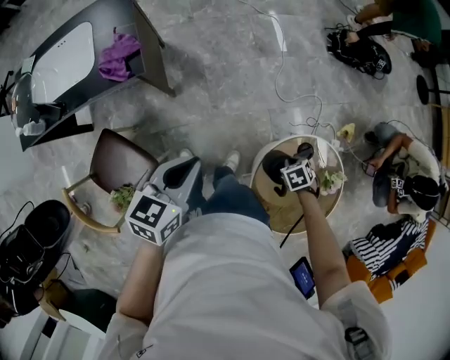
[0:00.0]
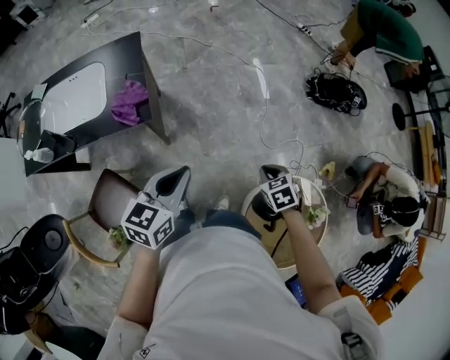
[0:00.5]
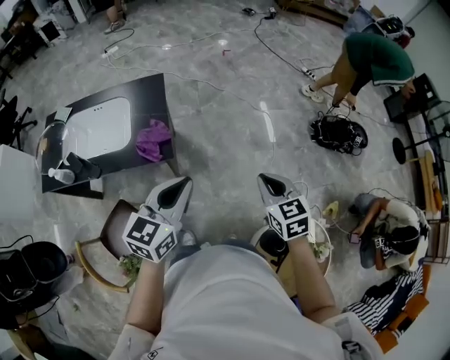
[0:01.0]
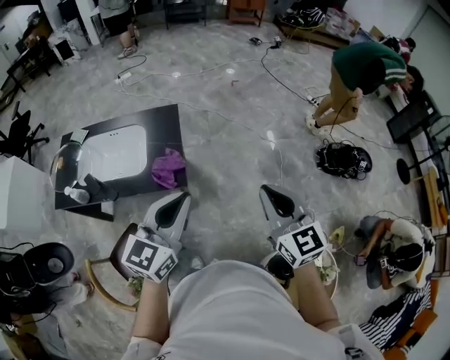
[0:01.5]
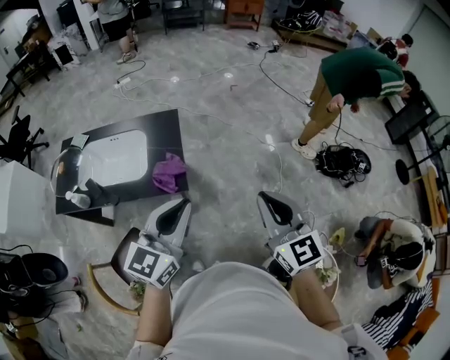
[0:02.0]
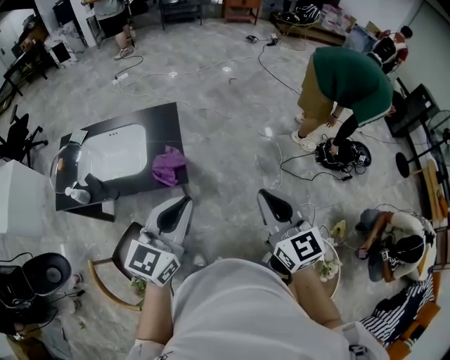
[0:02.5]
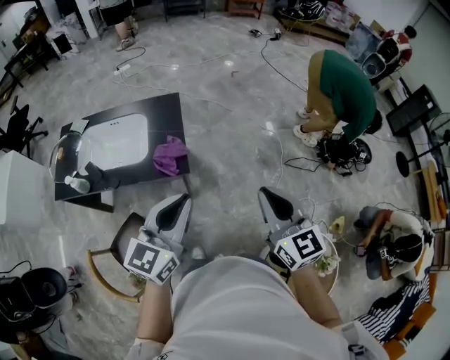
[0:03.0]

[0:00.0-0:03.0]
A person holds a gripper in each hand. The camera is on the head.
0:00.0 to 0:01.5: The left gripper heads upward, covering roughly 25 cm, and rotates some 40 degrees, while the right gripper heads upward, covering about 50 cm, and tips its fingers upward by approximately 70 degrees.
0:01.5 to 0:03.0: The grippers move only a little.

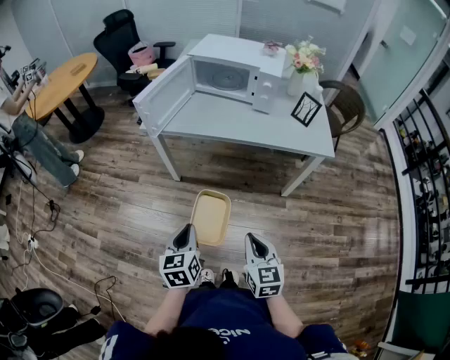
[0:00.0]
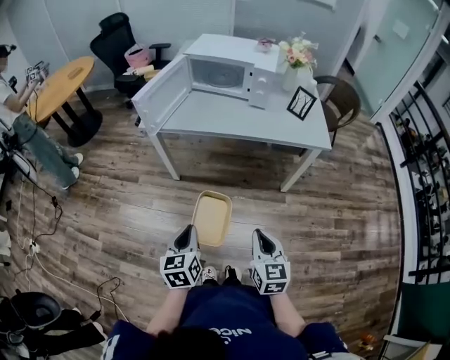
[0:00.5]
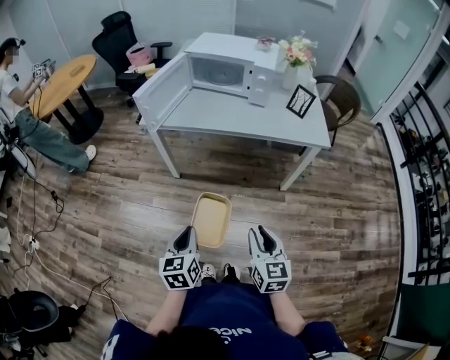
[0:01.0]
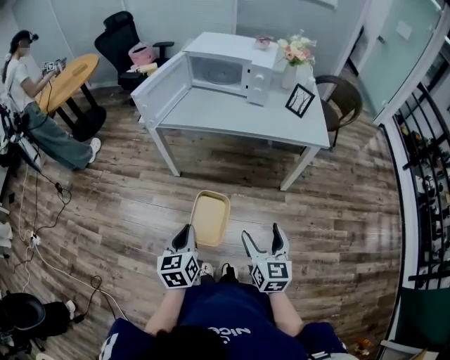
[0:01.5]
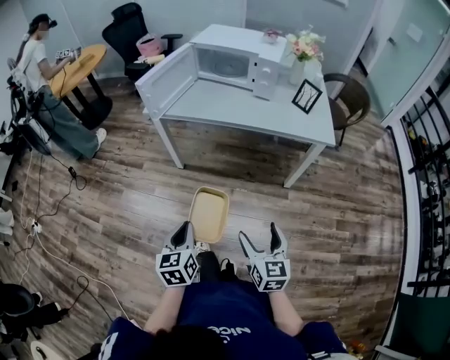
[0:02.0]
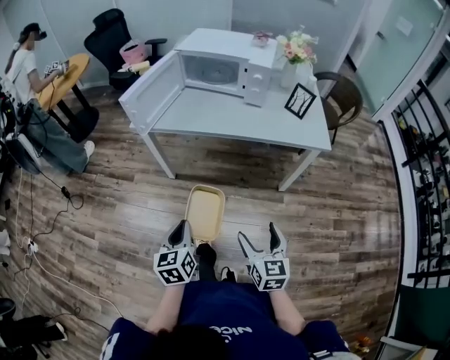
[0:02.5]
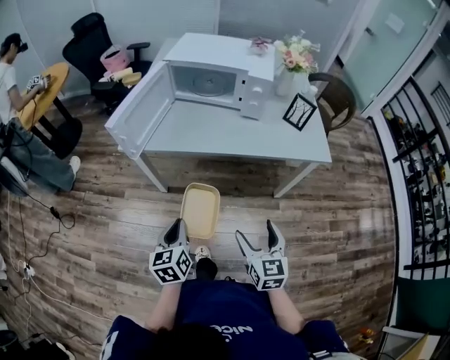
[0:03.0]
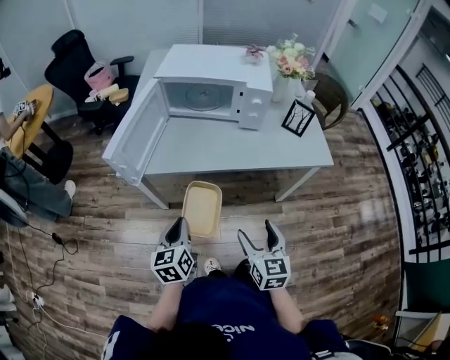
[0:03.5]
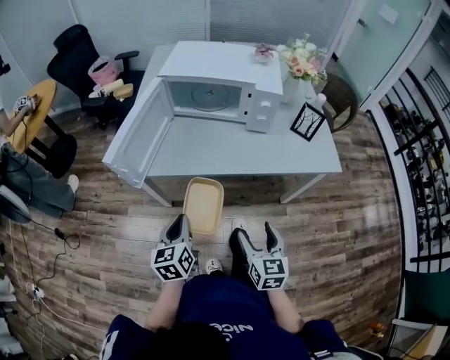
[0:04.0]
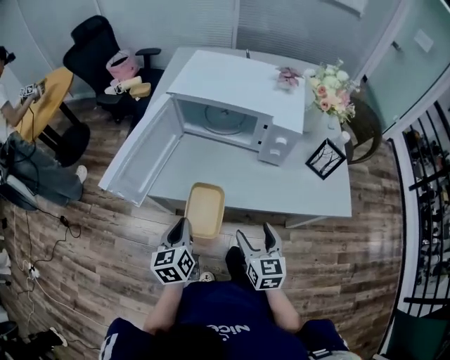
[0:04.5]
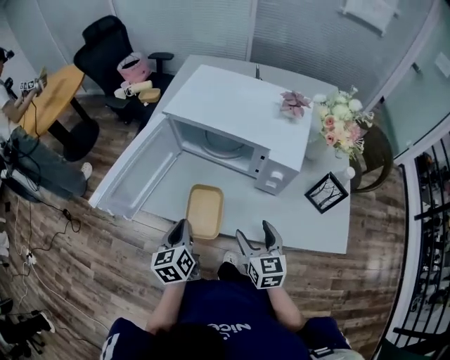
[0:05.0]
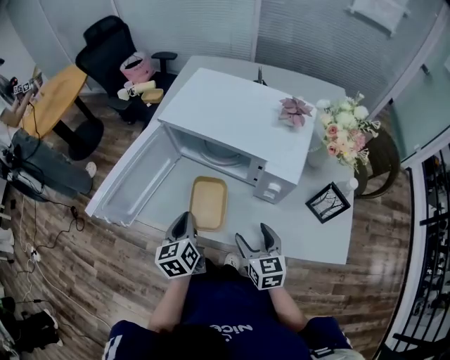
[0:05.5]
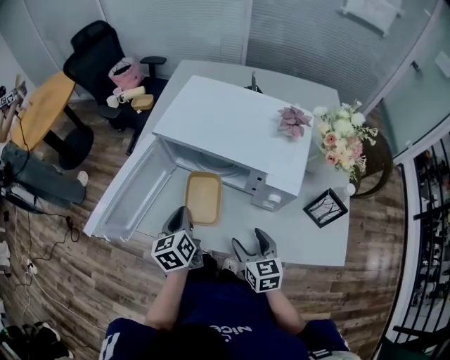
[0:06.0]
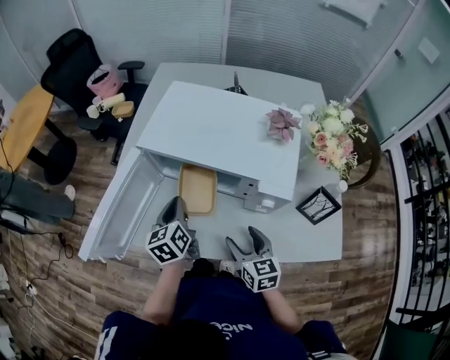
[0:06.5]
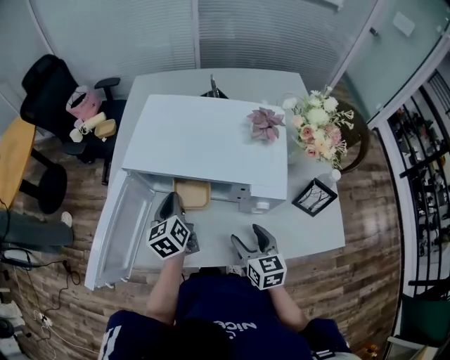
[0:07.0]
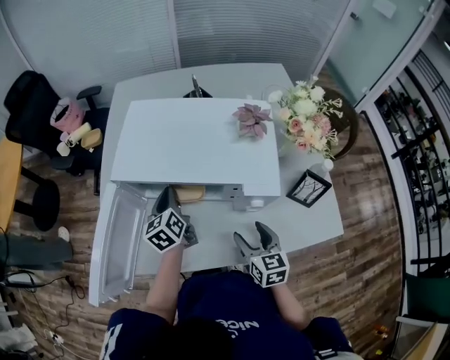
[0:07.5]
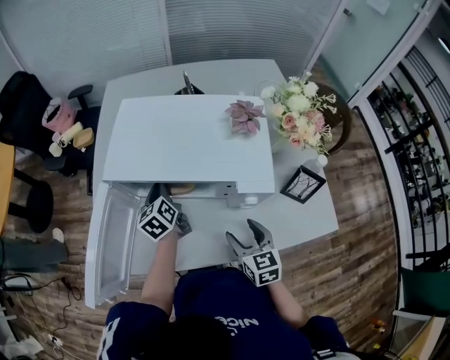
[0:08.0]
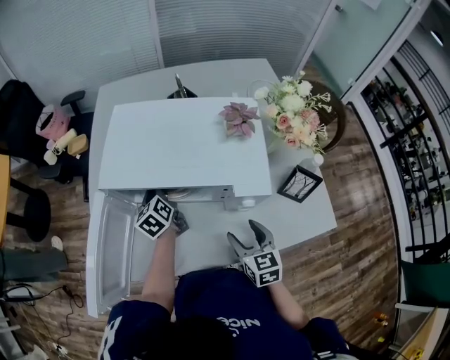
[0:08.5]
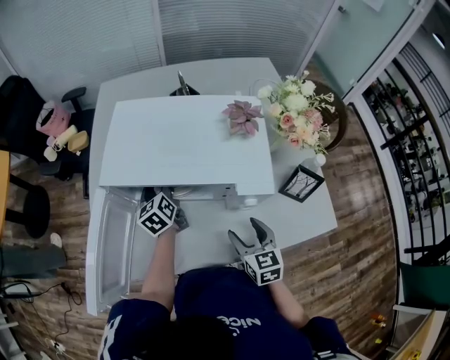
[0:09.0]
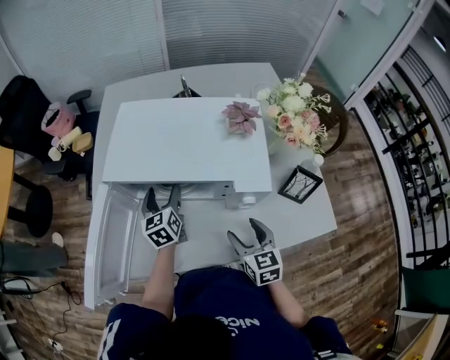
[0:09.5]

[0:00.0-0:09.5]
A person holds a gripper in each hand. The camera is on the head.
0:00.0 to 0:02.0: The left gripper shifts approximately 5 cm backward, while the right gripper is displaced to the right by roughly 5 cm, and opens up.
0:02.0 to 0:04.0: Both grippers travel together forward, about 30 cm.
0:04.0 to 0:05.5: The left gripper shifts roughly 25 cm forward and to the right, while the right gripper shifts roughly 25 cm forward, and rotates some 20 degrees.
0:05.5 to 0:07.5: The left gripper travels forward by some 20 cm. Meanwhile the right gripper travels forward by some 5 cm, and turns by approximately 20 degrees.
0:07.5 to 0:09.5: The left gripper opens.

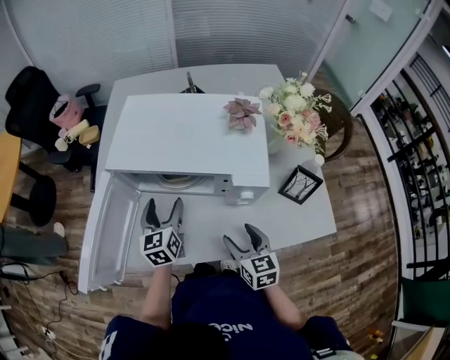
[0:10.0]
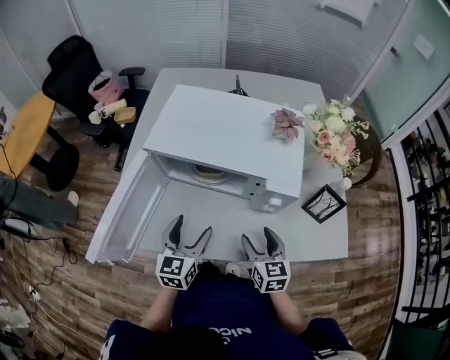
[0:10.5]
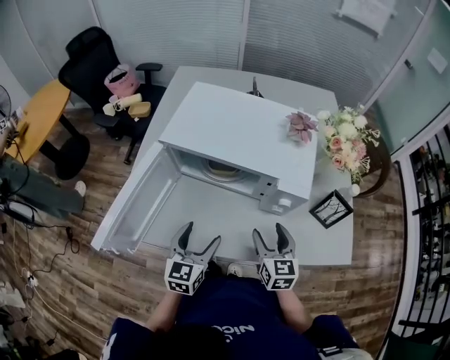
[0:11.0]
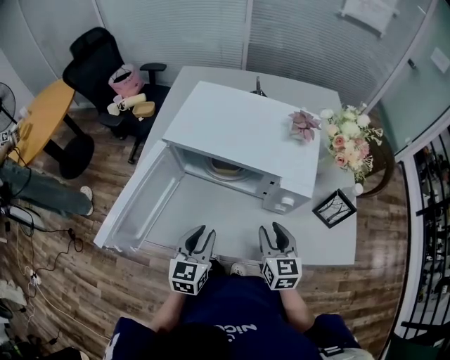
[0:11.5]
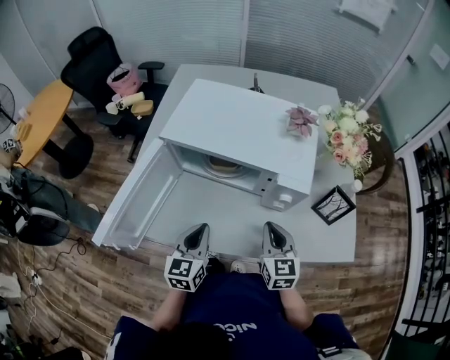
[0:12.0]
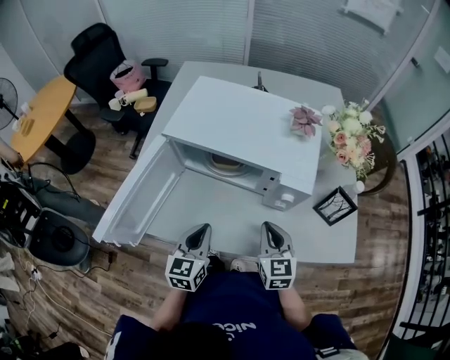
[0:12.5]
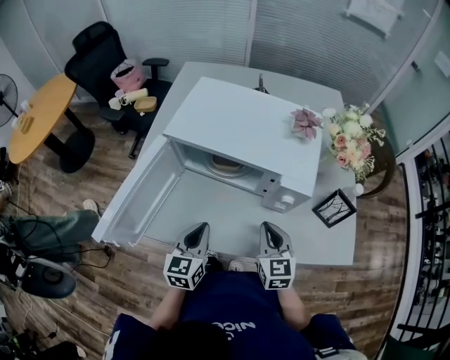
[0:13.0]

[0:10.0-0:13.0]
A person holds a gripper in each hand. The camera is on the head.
0:10.0 to 0:11.5: The left gripper is displaced backward by approximately 15 cm, and closes up.
0:11.5 to 0:13.0: The right gripper closes up.

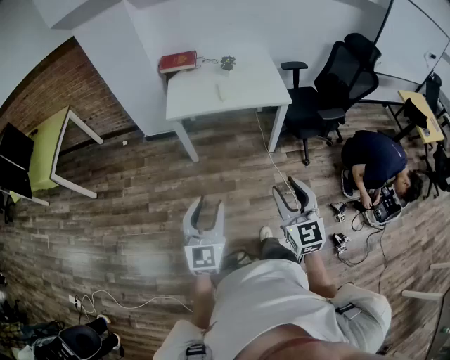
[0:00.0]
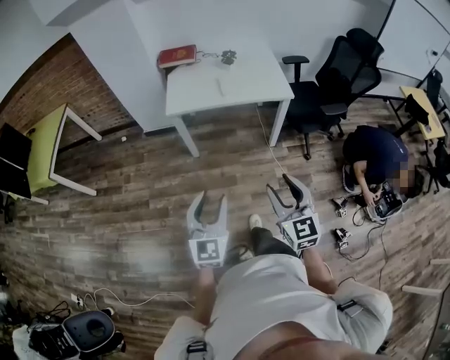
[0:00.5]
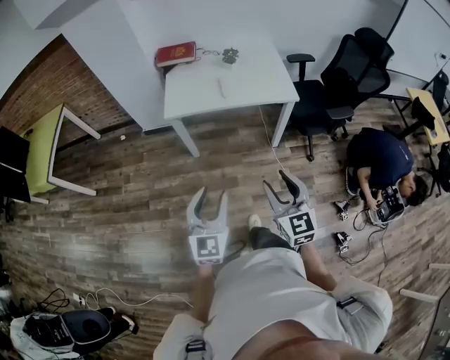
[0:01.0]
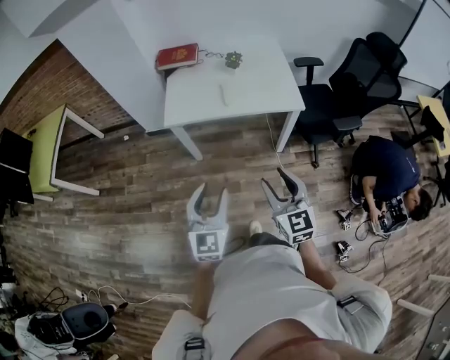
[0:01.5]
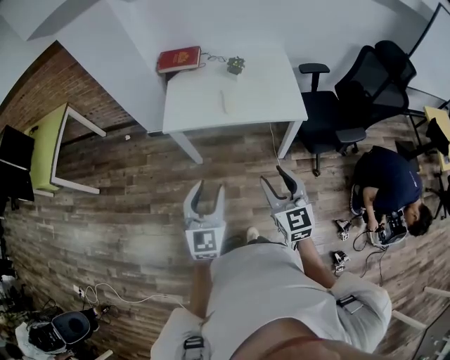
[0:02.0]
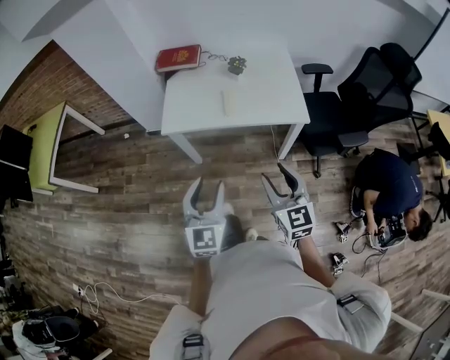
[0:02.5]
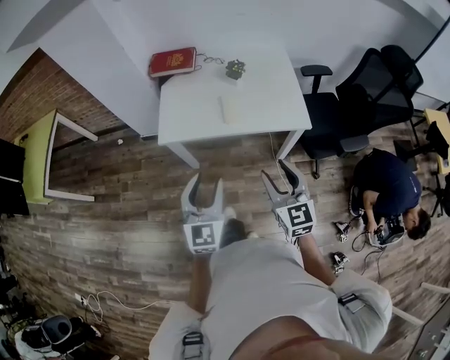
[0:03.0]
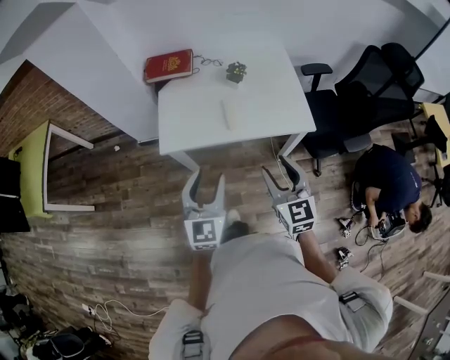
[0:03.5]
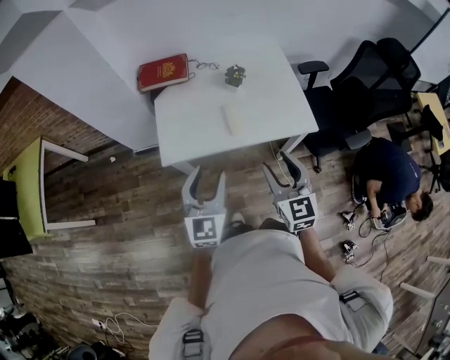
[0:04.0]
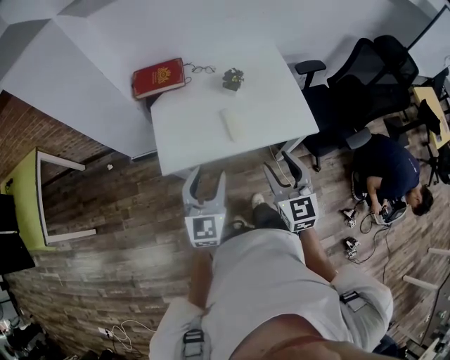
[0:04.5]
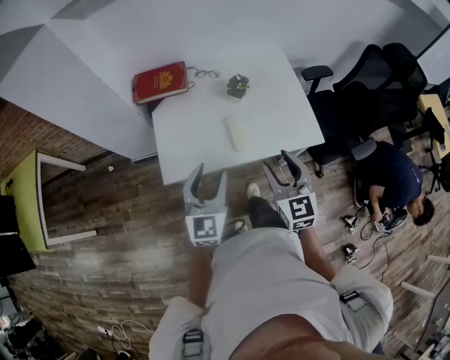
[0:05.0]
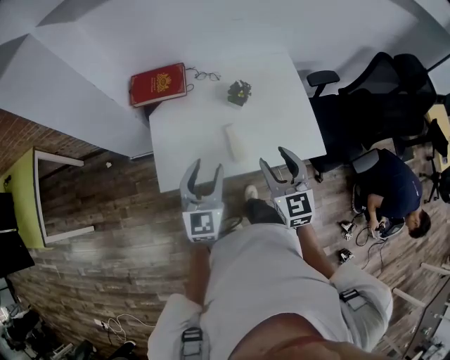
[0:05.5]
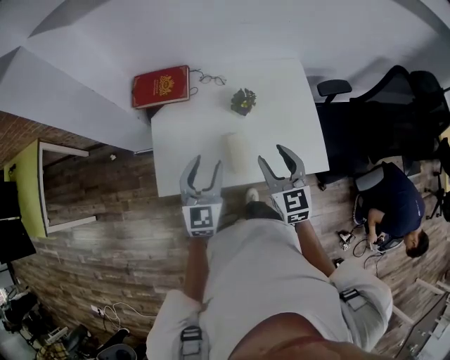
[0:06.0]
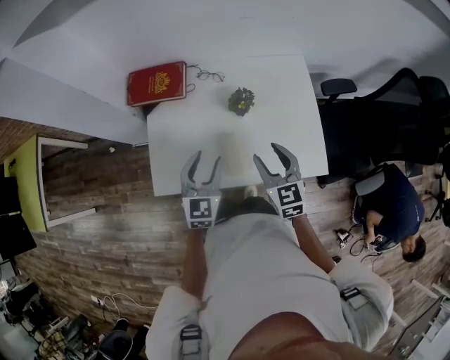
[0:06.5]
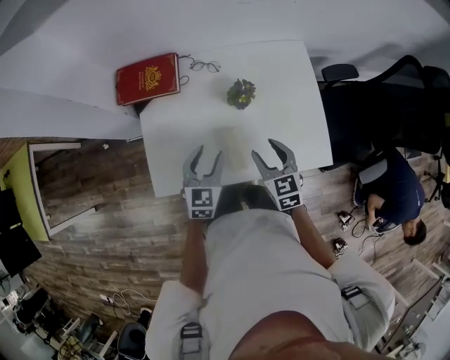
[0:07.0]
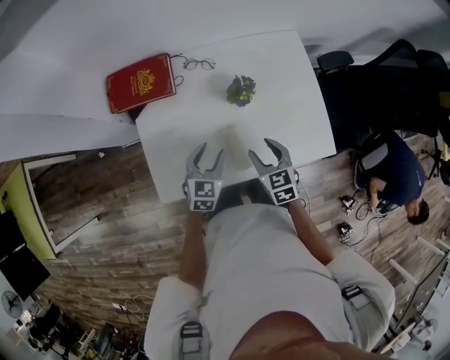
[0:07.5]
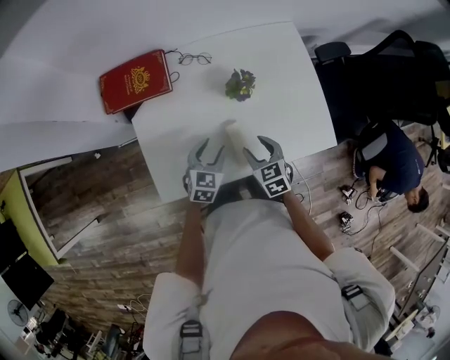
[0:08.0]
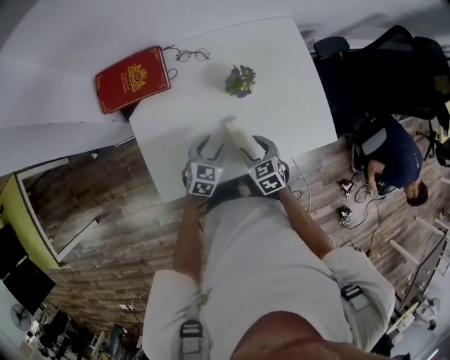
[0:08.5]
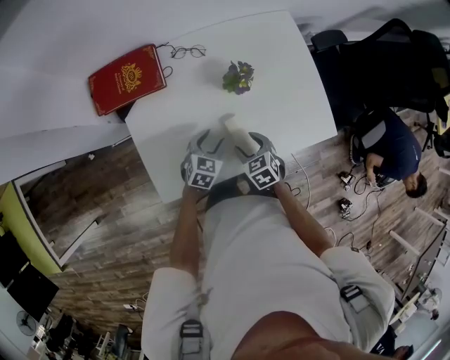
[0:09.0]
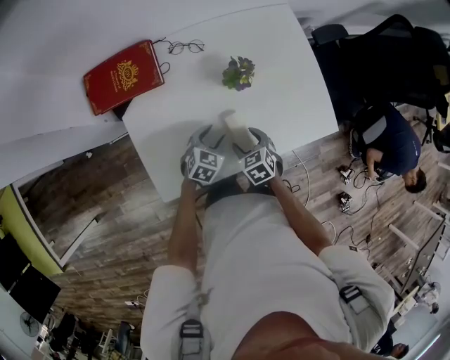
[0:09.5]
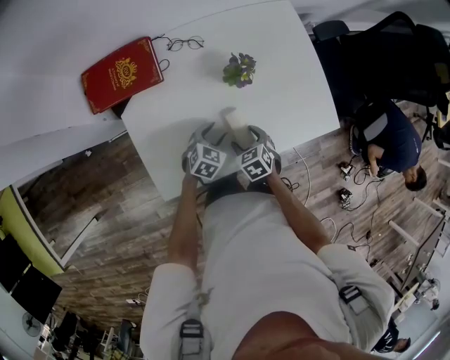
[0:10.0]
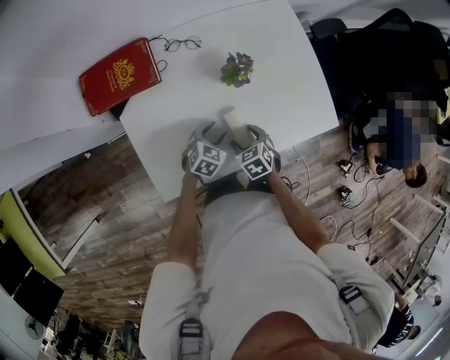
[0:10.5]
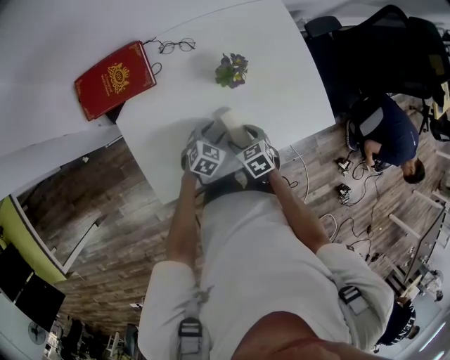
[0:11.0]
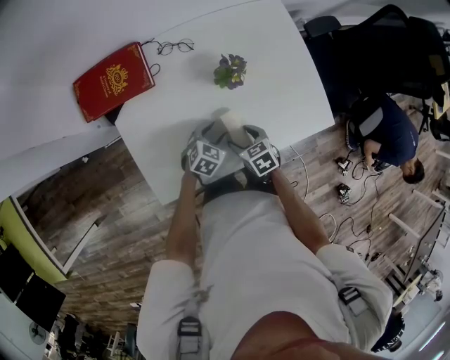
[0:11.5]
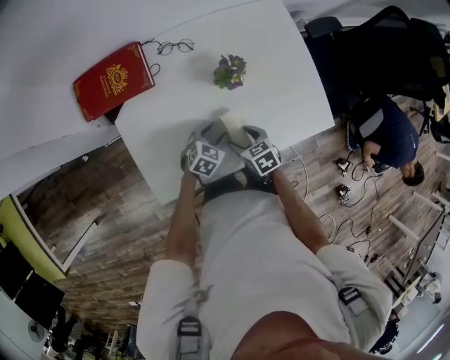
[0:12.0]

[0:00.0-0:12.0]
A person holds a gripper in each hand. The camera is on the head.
0:00.0 to 0:02.0: Both grippers travel together forward, approximately 25 cm.
0:02.0 to 0:04.0: The grippers both shift forward by approximately 25 cm.
0:04.0 to 0:06.0: Both grippers move forward, some 25 cm.
0:06.0 to 0:08.0: The right gripper travels downward by about 20 cm, and rotates approximately 30 degrees. The left gripper travels downward and forward by roughly 25 cm, and rotates approximately 30 degrees.
0:08.0 to 0:10.0: Both grippers travel together downward, some 10 cm.
0:10.0 to 0:12.0: The grippers move only a little.
